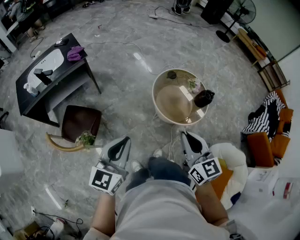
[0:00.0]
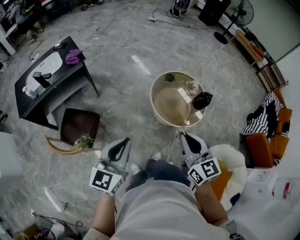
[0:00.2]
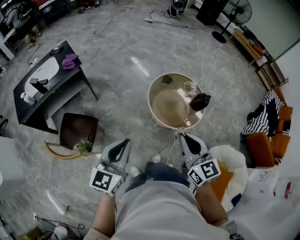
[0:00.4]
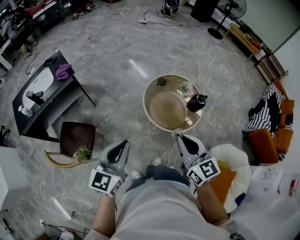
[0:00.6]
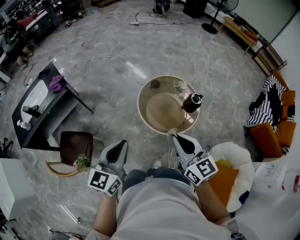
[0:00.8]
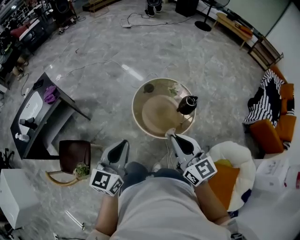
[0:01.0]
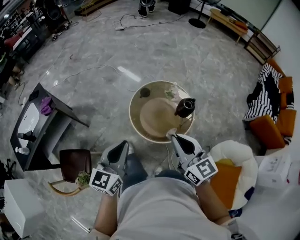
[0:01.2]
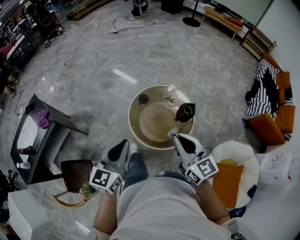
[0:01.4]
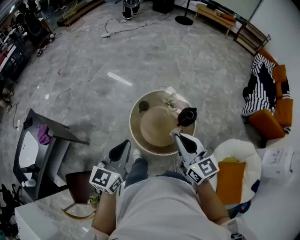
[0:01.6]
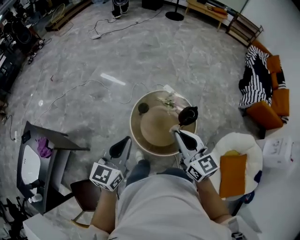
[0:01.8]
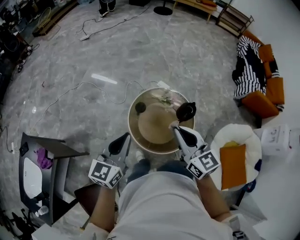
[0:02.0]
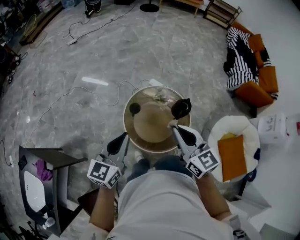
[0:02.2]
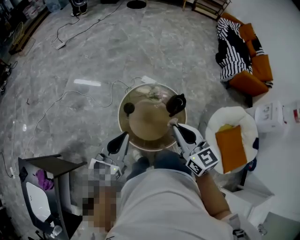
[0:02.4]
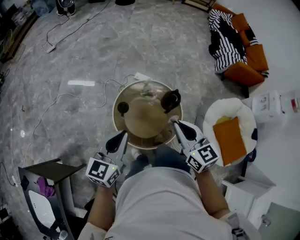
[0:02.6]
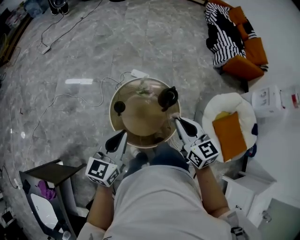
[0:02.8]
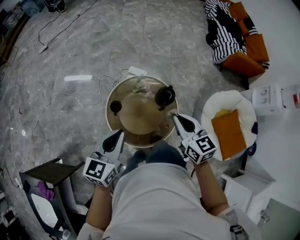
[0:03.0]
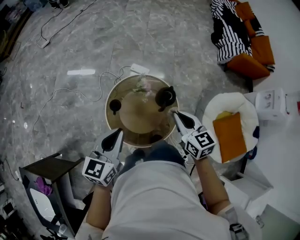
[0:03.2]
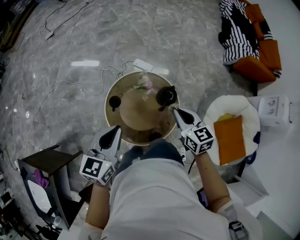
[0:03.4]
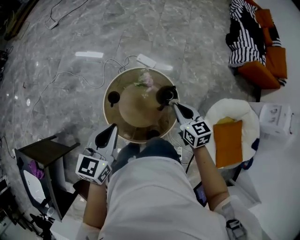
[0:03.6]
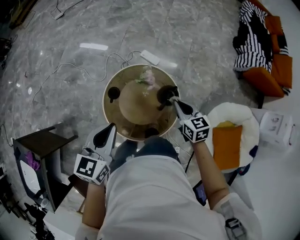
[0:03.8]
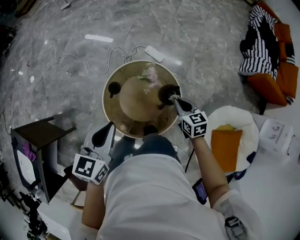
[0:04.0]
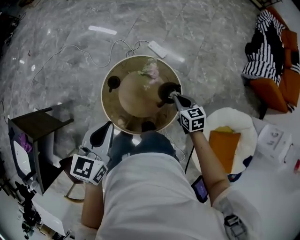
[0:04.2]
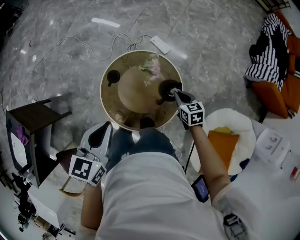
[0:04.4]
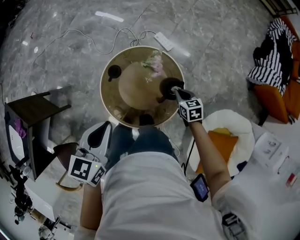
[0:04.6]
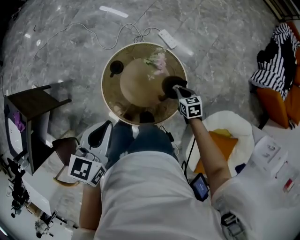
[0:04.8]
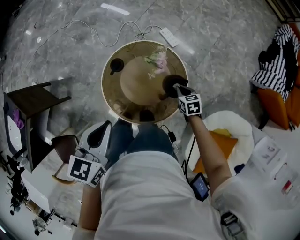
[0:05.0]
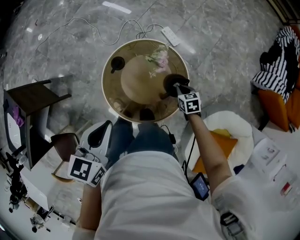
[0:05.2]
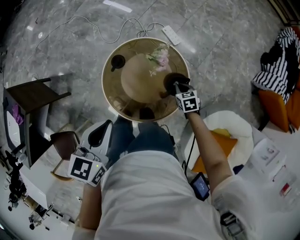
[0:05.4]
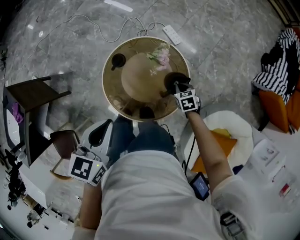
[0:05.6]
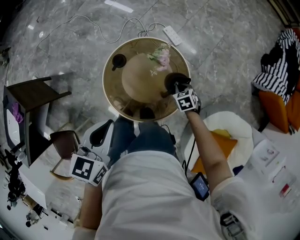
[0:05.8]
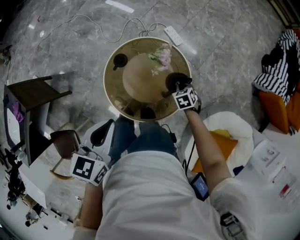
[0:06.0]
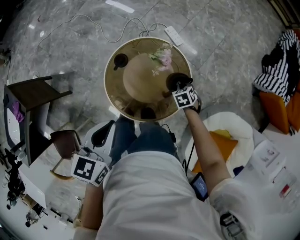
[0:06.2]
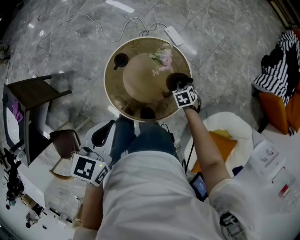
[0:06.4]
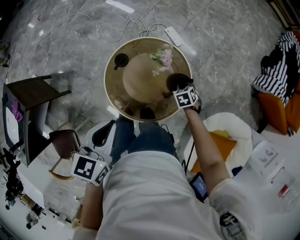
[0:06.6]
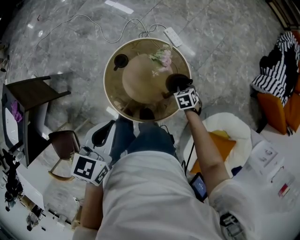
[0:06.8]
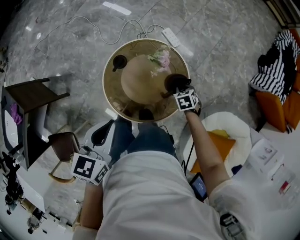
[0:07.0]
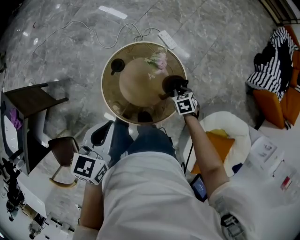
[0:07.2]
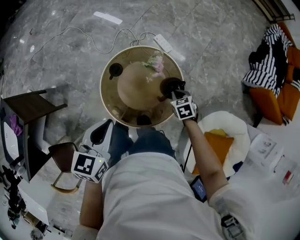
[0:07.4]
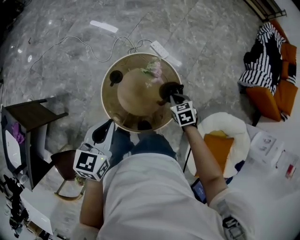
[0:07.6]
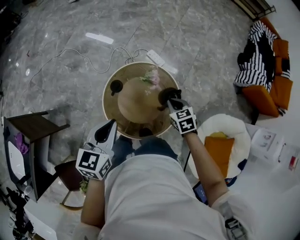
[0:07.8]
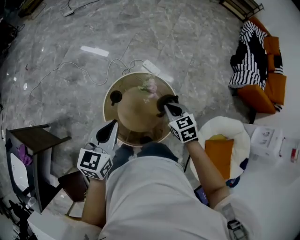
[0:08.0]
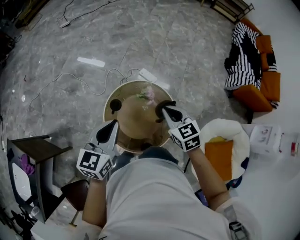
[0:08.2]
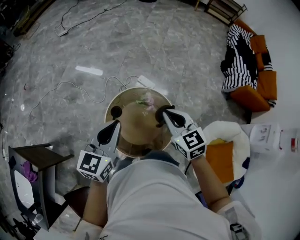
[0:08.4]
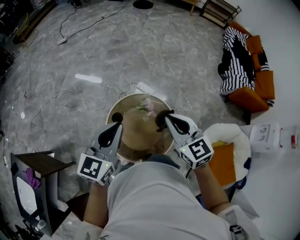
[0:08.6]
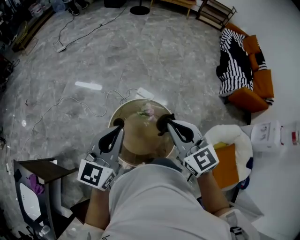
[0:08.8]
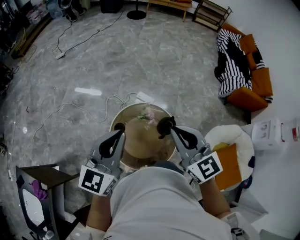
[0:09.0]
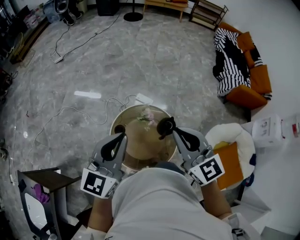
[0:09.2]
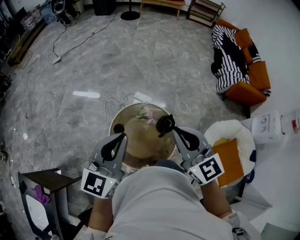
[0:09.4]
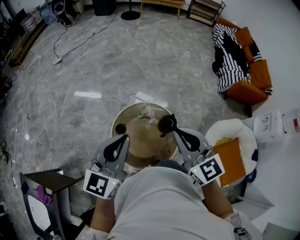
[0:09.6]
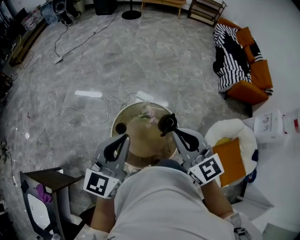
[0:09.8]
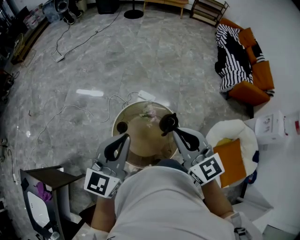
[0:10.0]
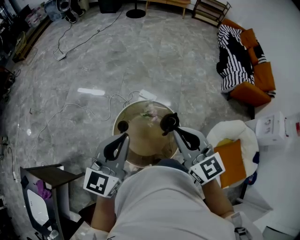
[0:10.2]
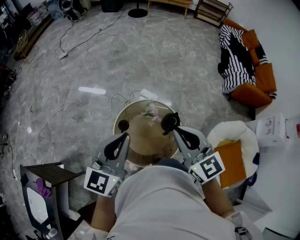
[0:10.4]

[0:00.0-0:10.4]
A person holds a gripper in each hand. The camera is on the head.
0:00.0 to 0:01.4: The grippers both shift forward and to the right by about 30 cm.
0:01.4 to 0:03.0: The left gripper shifts by roughly 25 cm, and turns by roughly 40 degrees, while the right gripper shifts by approximately 20 cm, and changes its angle by some 40 degrees.
0:03.0 to 0:04.4: The right gripper moves downward, approximately 30 cm, and turns by about 30 degrees. Meanwhile the left gripper changes place by approximately 10 cm, and swivels some 30 degrees.
0:04.4 to 0:06.0: The right gripper heads downward, covering about 10 cm, and turns by roughly 30 degrees.
0:06.0 to 0:07.4: The right gripper shifts some 10 cm upward.
0:07.4 to 0:09.0: The right gripper goes some 50 cm upward, and points its fingers approximately 50 degrees further upward. The left gripper goes about 25 cm upward, and points its fingers approximately 30 degrees further upward.
0:09.0 to 0:10.4: There are only small adjustments of the grippers.

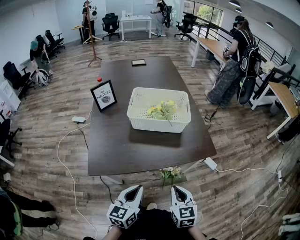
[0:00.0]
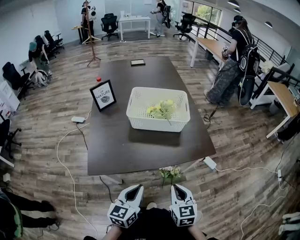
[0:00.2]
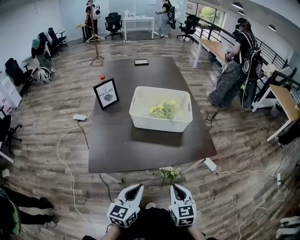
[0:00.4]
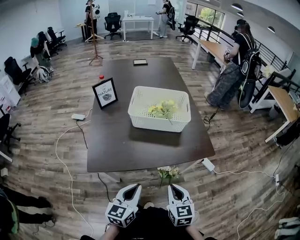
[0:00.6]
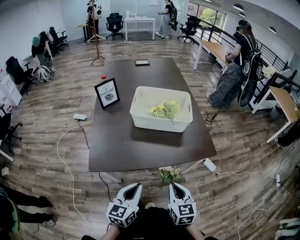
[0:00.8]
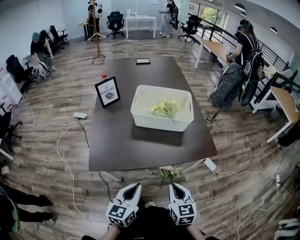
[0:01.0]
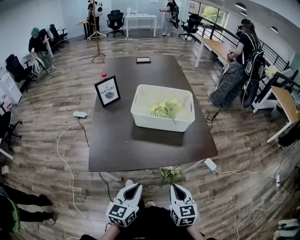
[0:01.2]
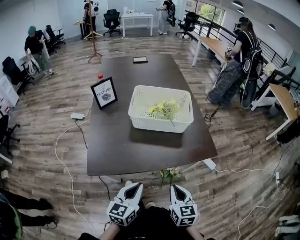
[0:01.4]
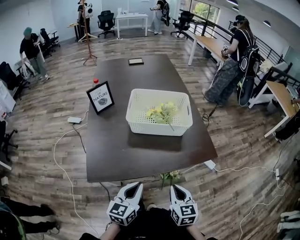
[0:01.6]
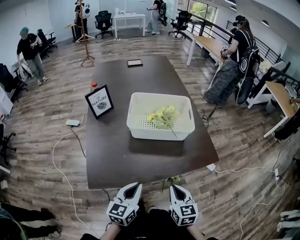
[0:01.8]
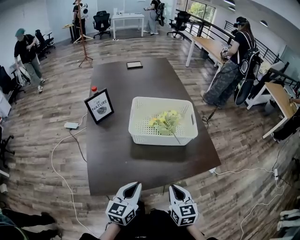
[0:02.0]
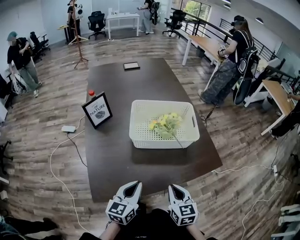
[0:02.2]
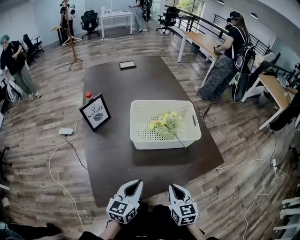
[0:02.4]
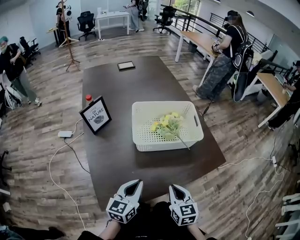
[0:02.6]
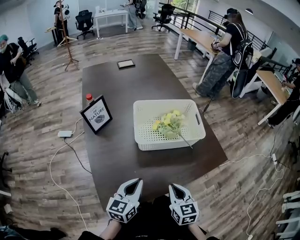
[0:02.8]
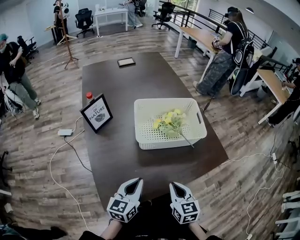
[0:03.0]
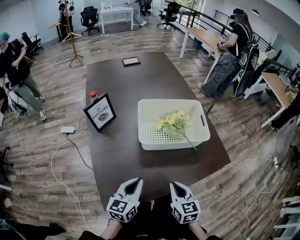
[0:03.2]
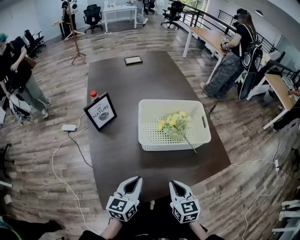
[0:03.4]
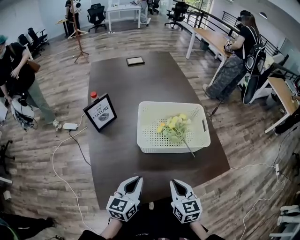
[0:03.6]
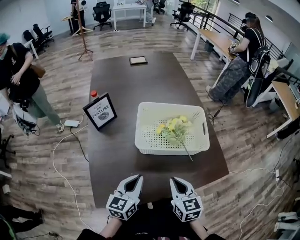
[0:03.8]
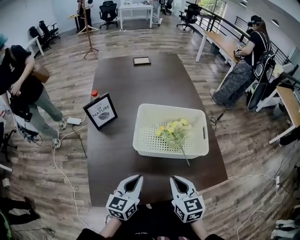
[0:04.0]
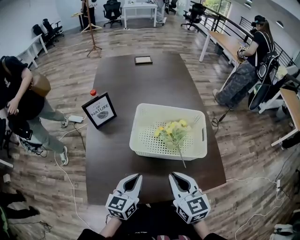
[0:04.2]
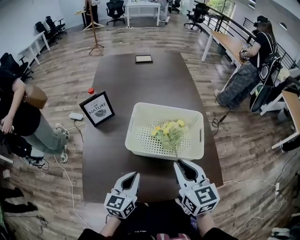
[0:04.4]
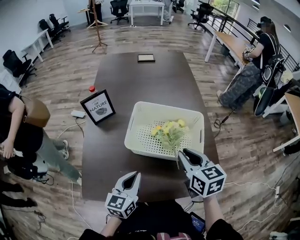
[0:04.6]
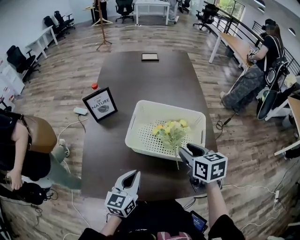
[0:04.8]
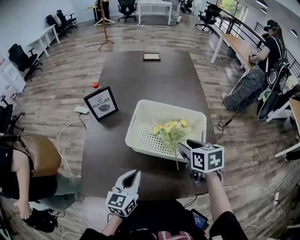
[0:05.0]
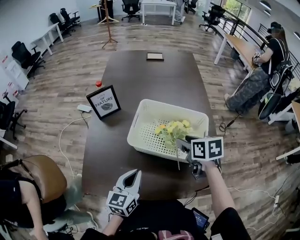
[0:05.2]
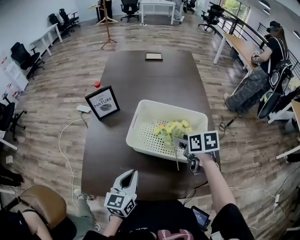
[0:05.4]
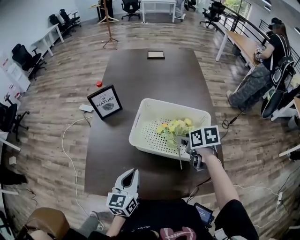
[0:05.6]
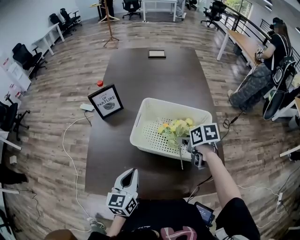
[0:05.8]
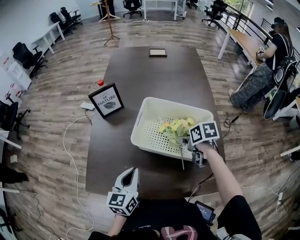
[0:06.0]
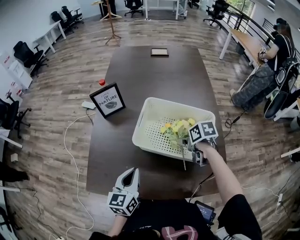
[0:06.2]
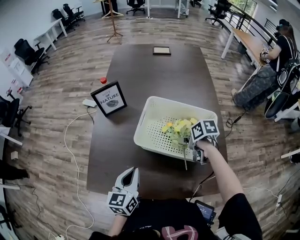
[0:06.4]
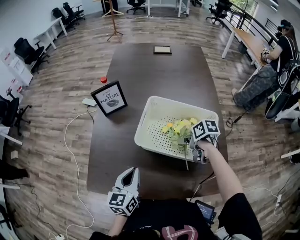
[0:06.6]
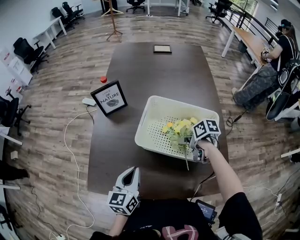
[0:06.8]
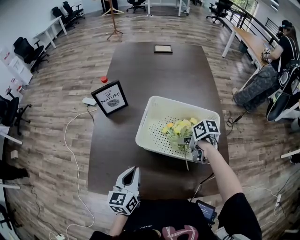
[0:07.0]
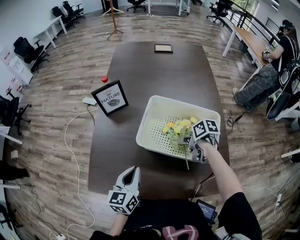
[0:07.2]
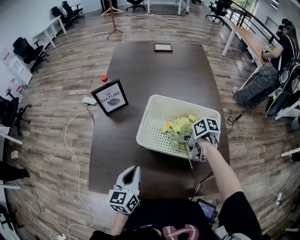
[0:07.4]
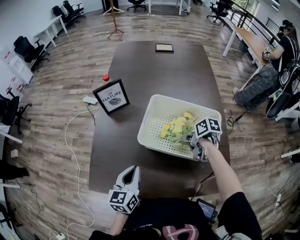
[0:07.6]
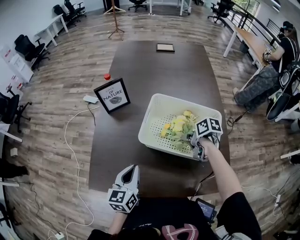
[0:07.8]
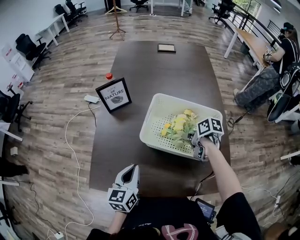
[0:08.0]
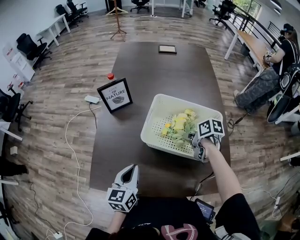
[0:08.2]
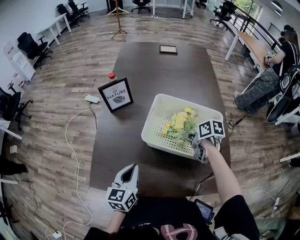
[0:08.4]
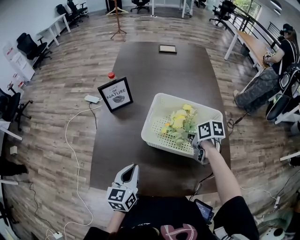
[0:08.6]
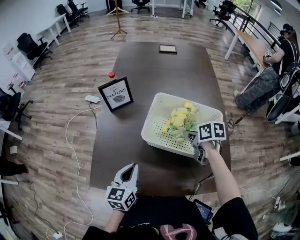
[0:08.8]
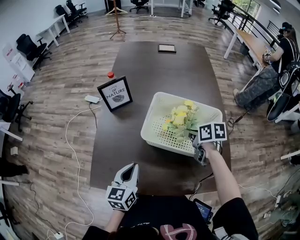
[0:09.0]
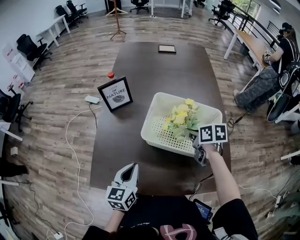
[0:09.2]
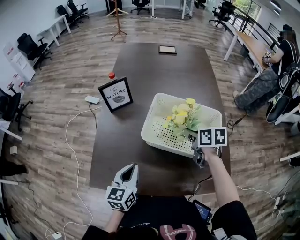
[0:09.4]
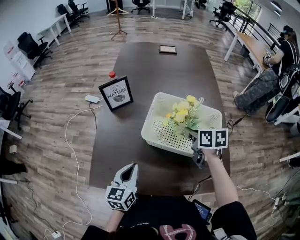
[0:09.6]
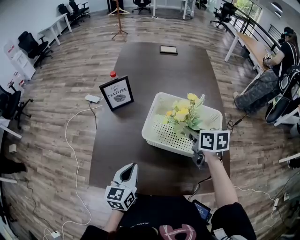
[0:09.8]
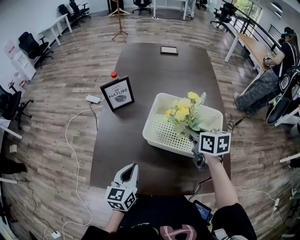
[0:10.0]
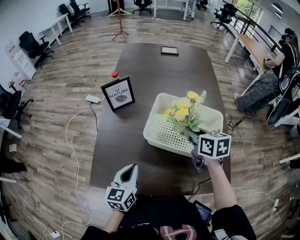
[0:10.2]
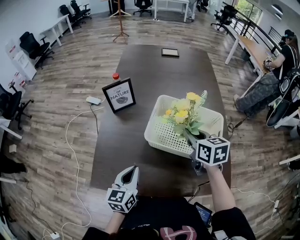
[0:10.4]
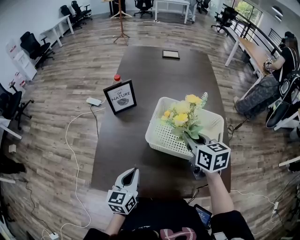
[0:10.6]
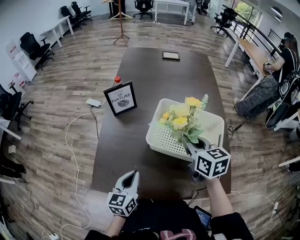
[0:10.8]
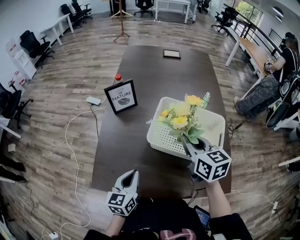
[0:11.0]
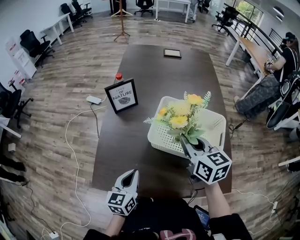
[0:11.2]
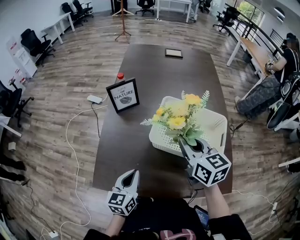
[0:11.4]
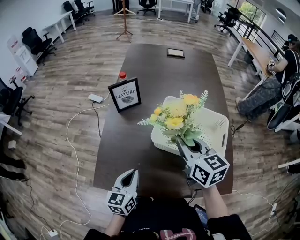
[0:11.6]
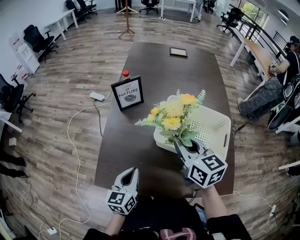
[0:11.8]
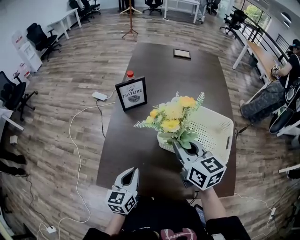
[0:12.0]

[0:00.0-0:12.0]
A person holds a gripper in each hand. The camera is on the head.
0:00.0 to 0:01.6: The left gripper ends up roughly 5 cm from where it was.
0:01.6 to 0:03.0: The right gripper is displaced to the left and forward by some 15 cm. The left gripper is displaced forward and to the left by approximately 20 cm.
0:03.0 to 0:04.4: The right gripper goes approximately 20 cm forward, upward and to the right, and changes its angle by some 20 degrees, while the left gripper is displaced to the right and forward by some 10 cm.
0:04.4 to 0:06.0: The right gripper goes some 20 cm downward and forward, tilts its fingers about 40 degrees downward, and opens up.
0:06.0 to 0:07.6: The right gripper ends up some 5 cm from where it was, changes its angle by some 20 degrees, and closes its fingers.
0:07.6 to 0:09.0: The right gripper moves upward, some 5 cm, and swivels approximately 20 degrees.
0:09.0 to 0:10.4: The right gripper moves upward, some 10 cm, and turns by roughly 30 degrees.
0:10.4 to 0:12.0: The left gripper is displaced to the left by approximately 5 cm. Meanwhile the right gripper shifts about 10 cm to the left.

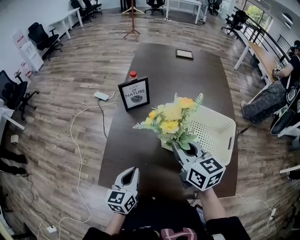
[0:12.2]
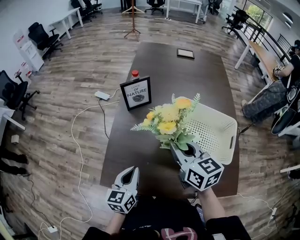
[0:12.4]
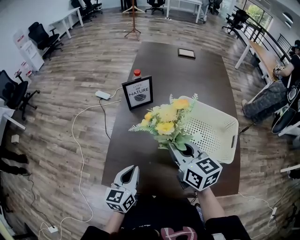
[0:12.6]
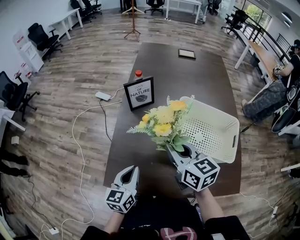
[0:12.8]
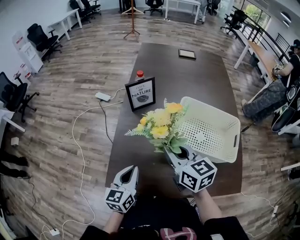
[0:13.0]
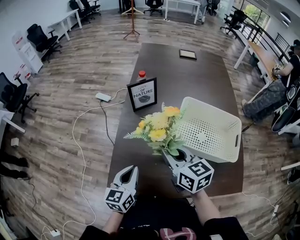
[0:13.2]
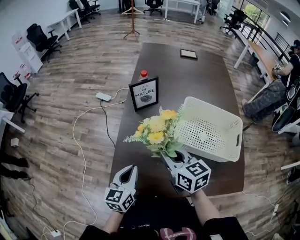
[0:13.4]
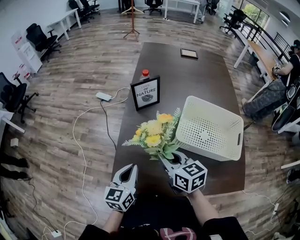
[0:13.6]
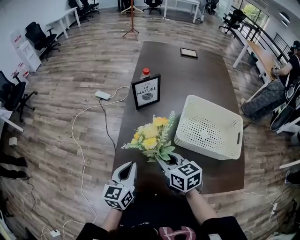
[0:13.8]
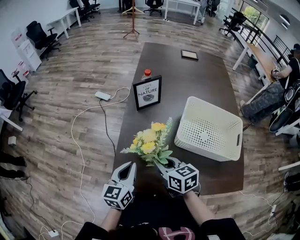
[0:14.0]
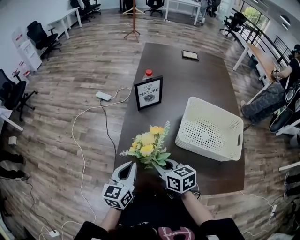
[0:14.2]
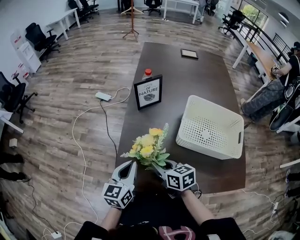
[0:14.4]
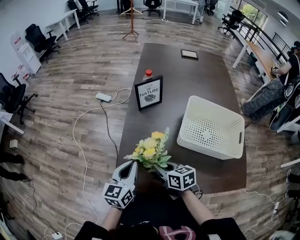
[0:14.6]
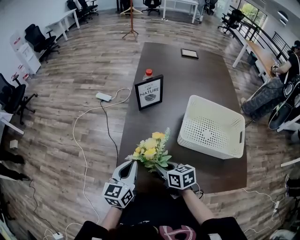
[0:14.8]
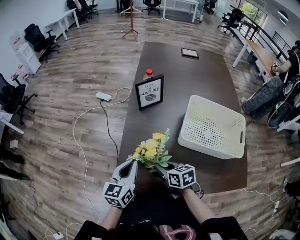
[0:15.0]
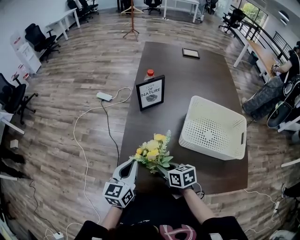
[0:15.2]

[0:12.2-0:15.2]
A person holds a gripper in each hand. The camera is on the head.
0:12.2 to 0:13.8: The right gripper travels to the left and downward by some 20 cm. The left gripper shifts about 10 cm to the left.
0:13.8 to 0:15.2: The right gripper moves downward, approximately 10 cm.
